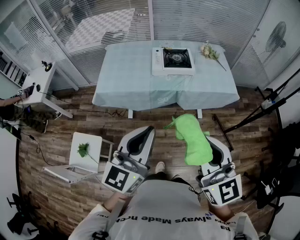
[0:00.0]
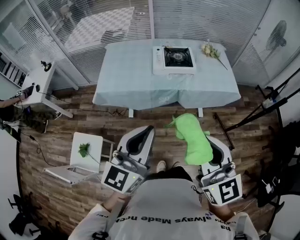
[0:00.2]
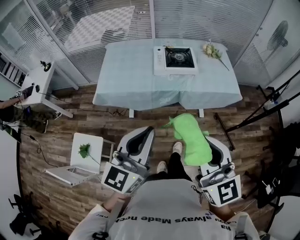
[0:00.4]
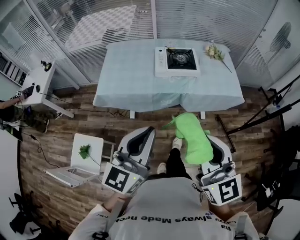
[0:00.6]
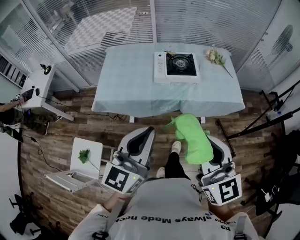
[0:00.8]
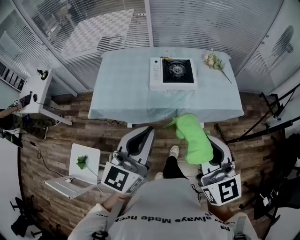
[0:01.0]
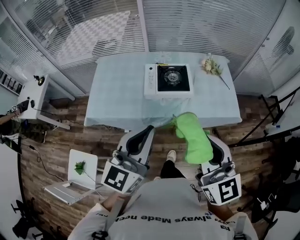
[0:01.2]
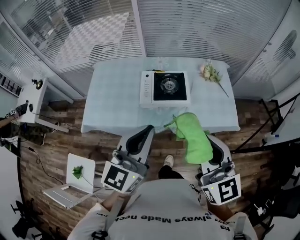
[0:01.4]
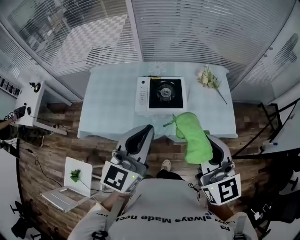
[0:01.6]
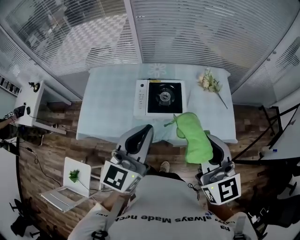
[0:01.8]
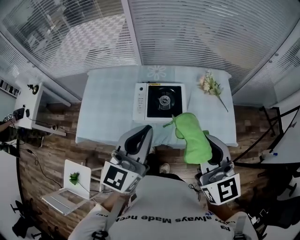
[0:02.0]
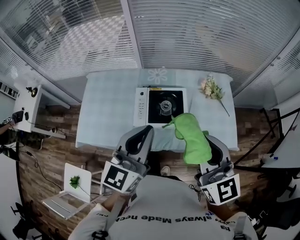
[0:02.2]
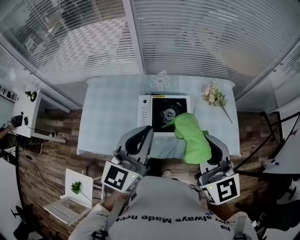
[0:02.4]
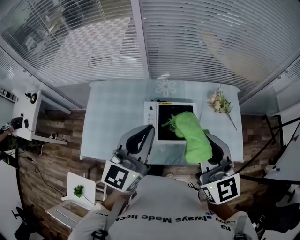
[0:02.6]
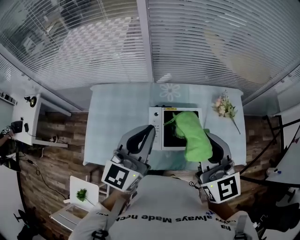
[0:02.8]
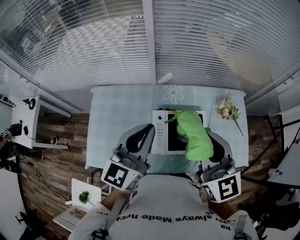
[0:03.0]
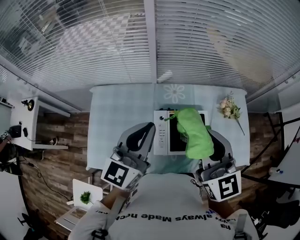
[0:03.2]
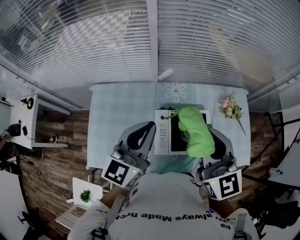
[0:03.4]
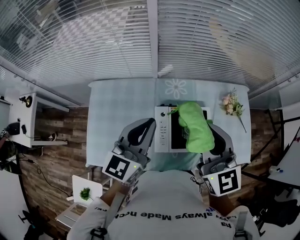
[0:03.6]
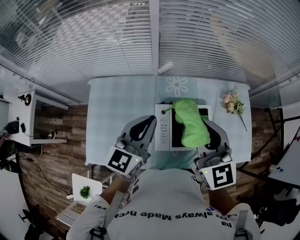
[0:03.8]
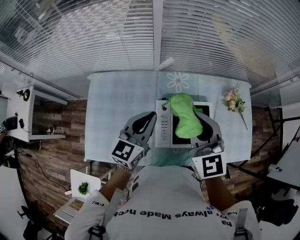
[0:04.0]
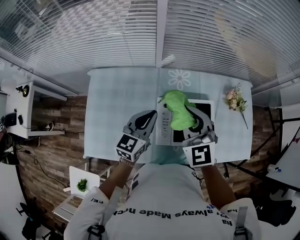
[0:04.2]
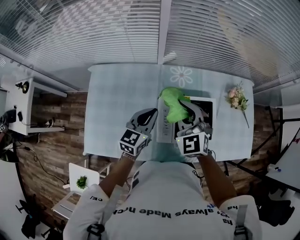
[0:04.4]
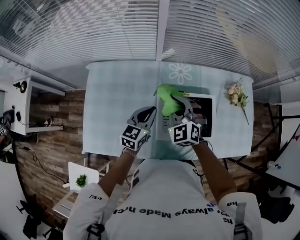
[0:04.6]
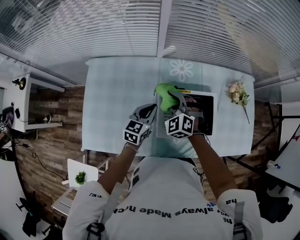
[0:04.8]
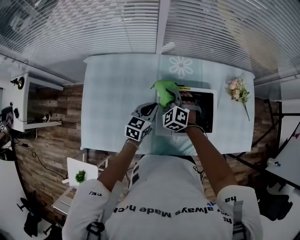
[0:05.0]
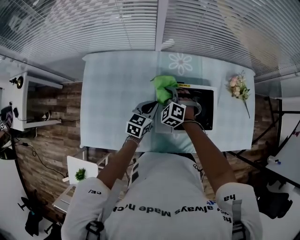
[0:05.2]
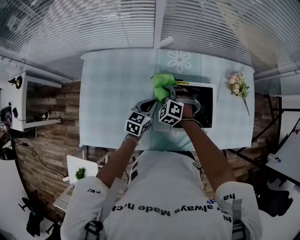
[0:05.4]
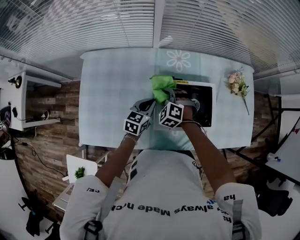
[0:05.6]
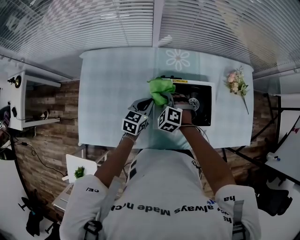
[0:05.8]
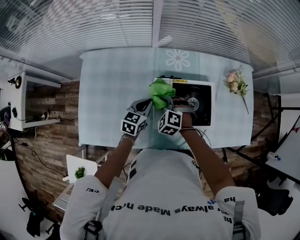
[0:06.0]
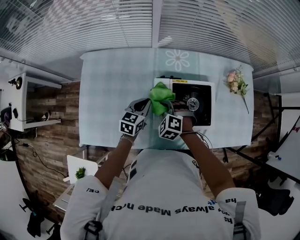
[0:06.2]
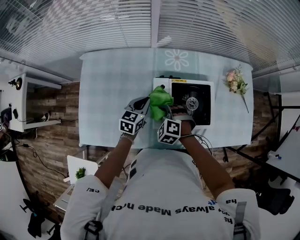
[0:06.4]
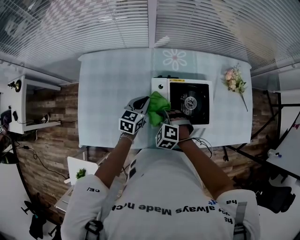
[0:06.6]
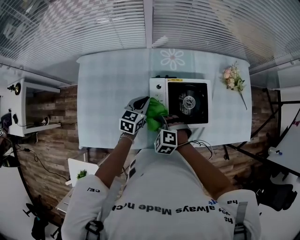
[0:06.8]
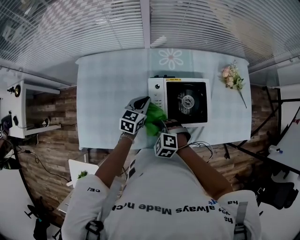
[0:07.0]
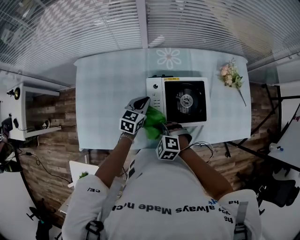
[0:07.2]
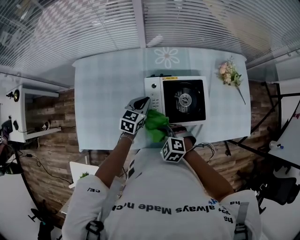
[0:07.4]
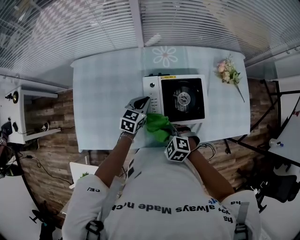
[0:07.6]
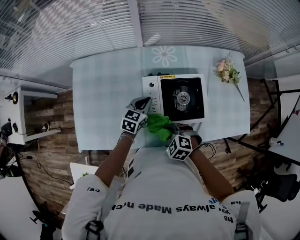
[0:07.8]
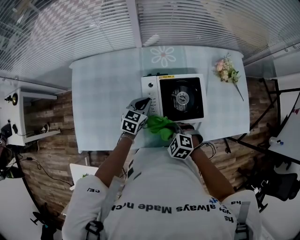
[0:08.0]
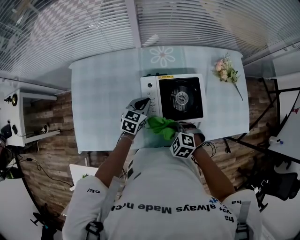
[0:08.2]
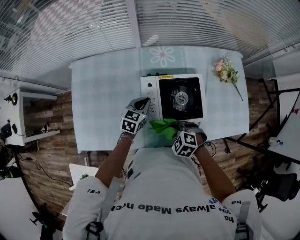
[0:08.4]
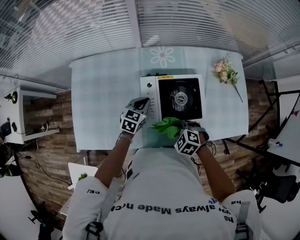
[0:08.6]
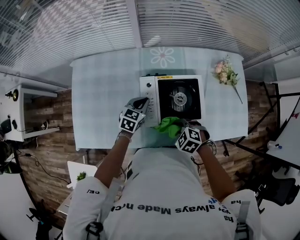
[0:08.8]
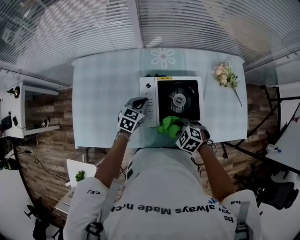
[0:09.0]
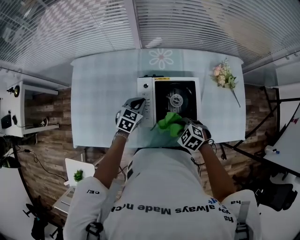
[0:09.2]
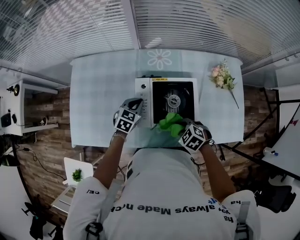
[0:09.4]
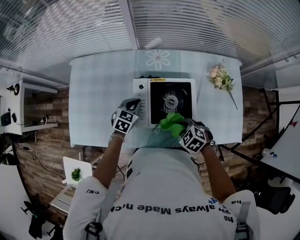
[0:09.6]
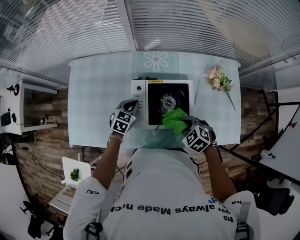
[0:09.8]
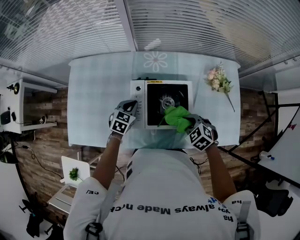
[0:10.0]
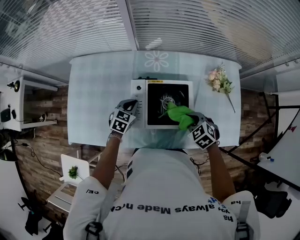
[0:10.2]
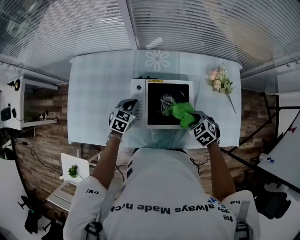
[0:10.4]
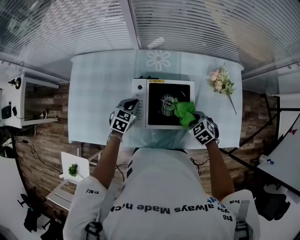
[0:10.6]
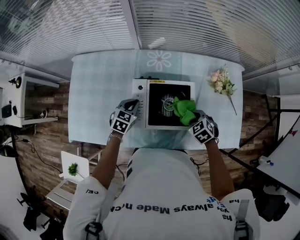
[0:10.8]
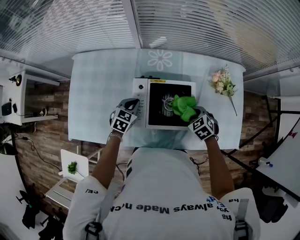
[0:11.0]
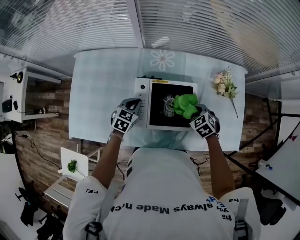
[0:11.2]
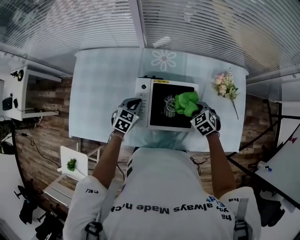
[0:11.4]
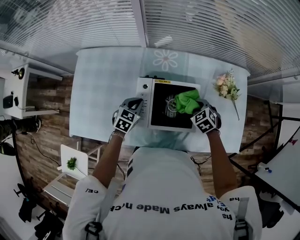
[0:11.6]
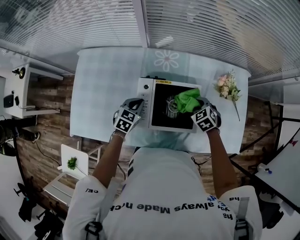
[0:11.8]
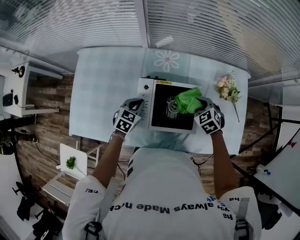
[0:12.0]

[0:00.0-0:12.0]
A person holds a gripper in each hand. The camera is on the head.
0:00.0 to 0:01.6: Both grippers move forward, approximately 35 cm.
0:01.6 to 0:03.0: The two grippers go some 30 cm forward and to the left.
0:03.0 to 0:04.4: The right gripper moves downward, to the left and forward, approximately 25 cm, and changes its angle by approximately 30 degrees; the left gripper moves downward, roughly 25 cm, and rotates approximately 20 degrees.
0:04.4 to 0:06.0: The right gripper is displaced downward by approximately 20 cm, and tilts its fingers approximately 30 degrees downward. The left gripper is displaced downward by approximately 15 cm.
0:06.0 to 0:07.6: The right gripper is displaced backward by some 15 cm, and swivels about 20 degrees.
0:07.6 to 0:09.0: The right gripper goes approximately 10 cm to the right.
0:09.0 to 0:10.4: The right gripper moves to the right, roughly 15 cm.
0:10.4 to 0:12.0: The right gripper travels forward by about 10 cm.

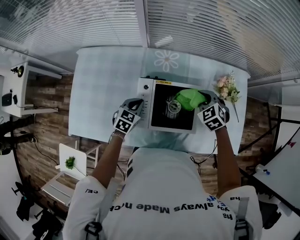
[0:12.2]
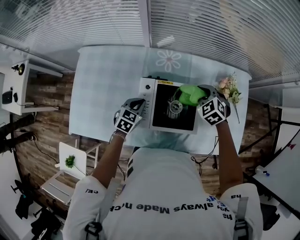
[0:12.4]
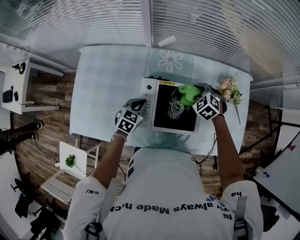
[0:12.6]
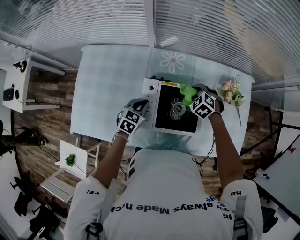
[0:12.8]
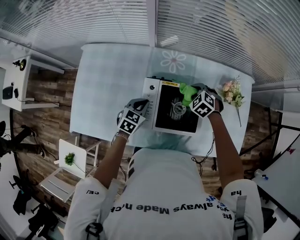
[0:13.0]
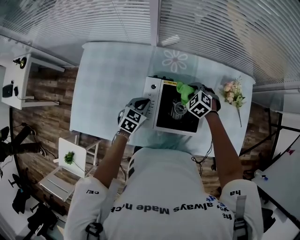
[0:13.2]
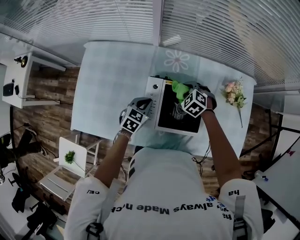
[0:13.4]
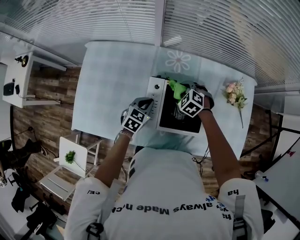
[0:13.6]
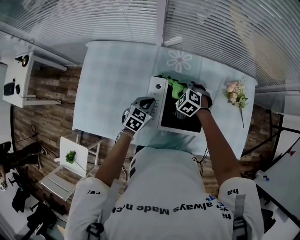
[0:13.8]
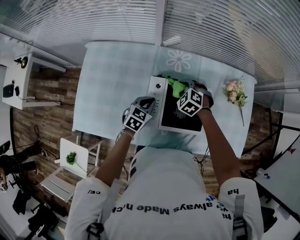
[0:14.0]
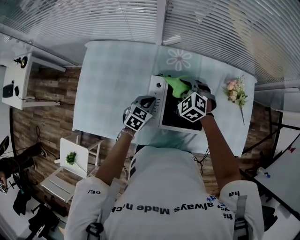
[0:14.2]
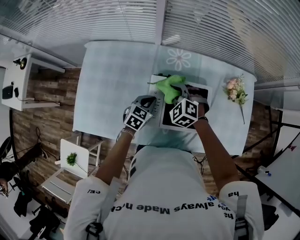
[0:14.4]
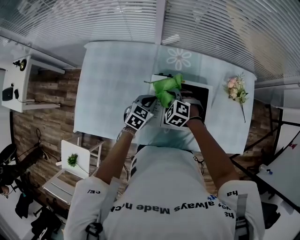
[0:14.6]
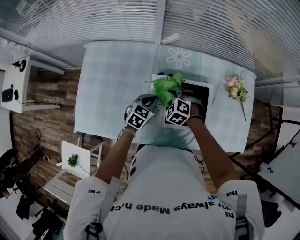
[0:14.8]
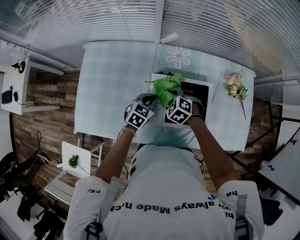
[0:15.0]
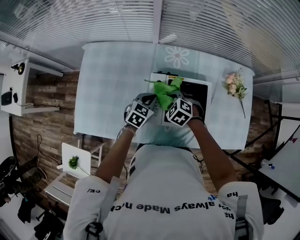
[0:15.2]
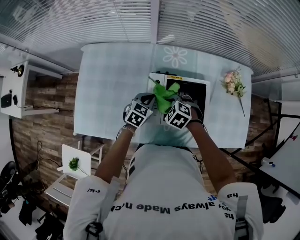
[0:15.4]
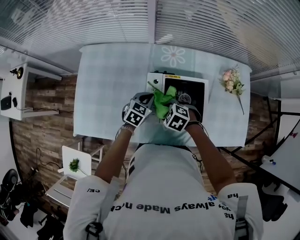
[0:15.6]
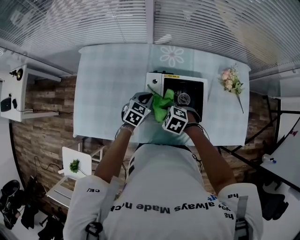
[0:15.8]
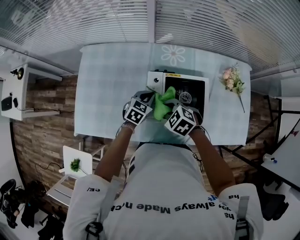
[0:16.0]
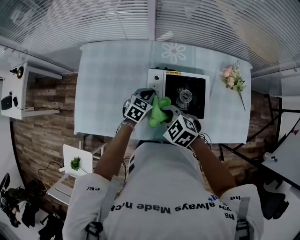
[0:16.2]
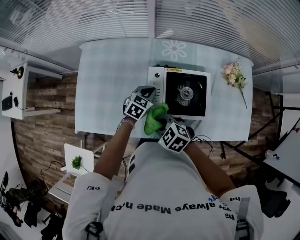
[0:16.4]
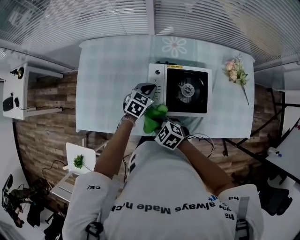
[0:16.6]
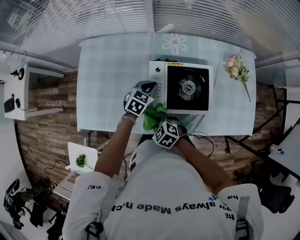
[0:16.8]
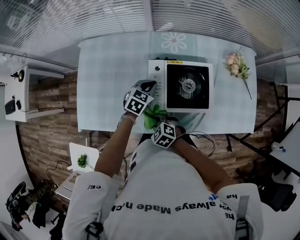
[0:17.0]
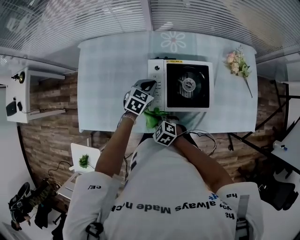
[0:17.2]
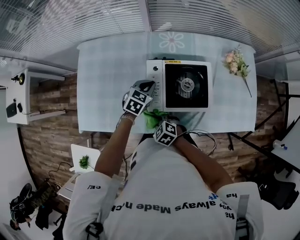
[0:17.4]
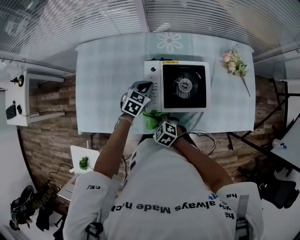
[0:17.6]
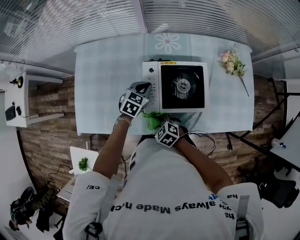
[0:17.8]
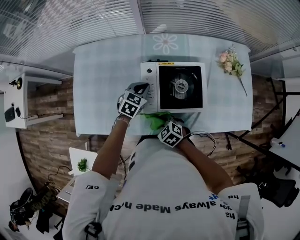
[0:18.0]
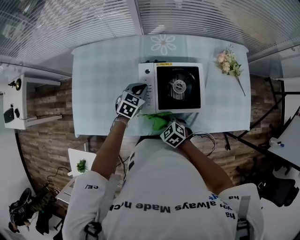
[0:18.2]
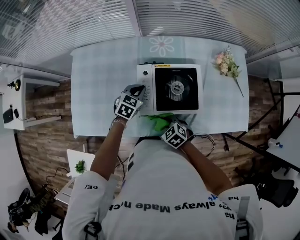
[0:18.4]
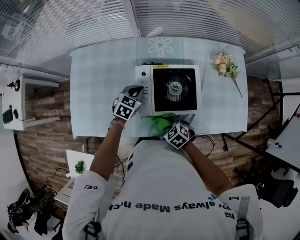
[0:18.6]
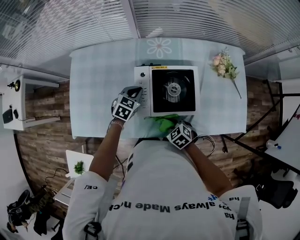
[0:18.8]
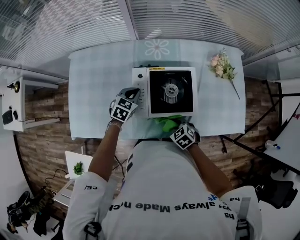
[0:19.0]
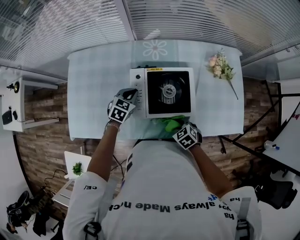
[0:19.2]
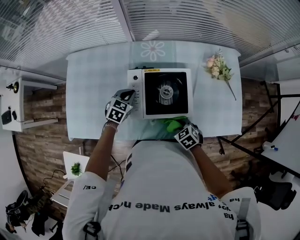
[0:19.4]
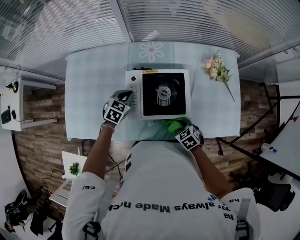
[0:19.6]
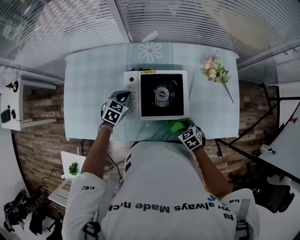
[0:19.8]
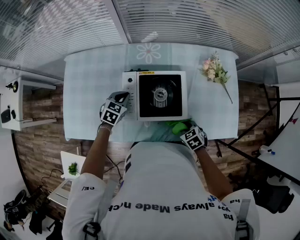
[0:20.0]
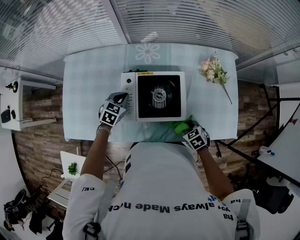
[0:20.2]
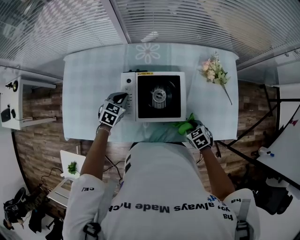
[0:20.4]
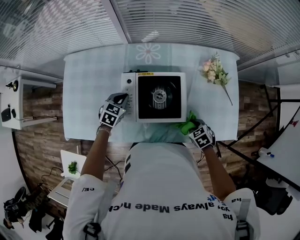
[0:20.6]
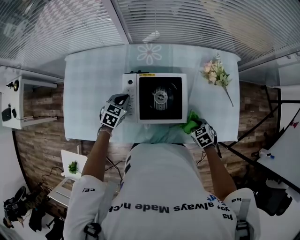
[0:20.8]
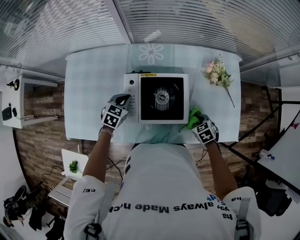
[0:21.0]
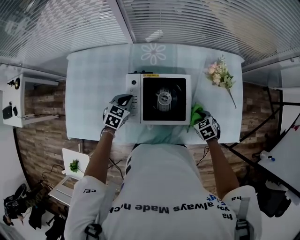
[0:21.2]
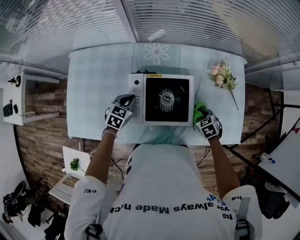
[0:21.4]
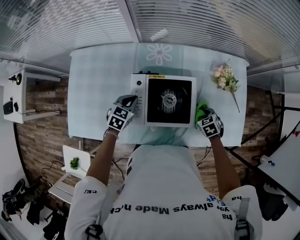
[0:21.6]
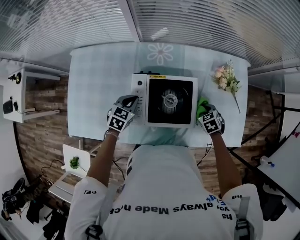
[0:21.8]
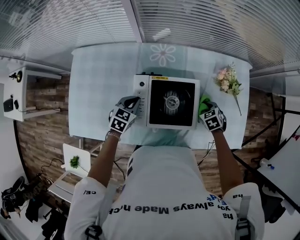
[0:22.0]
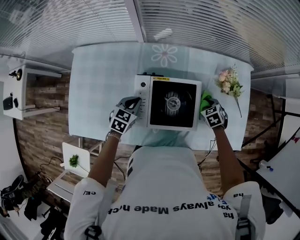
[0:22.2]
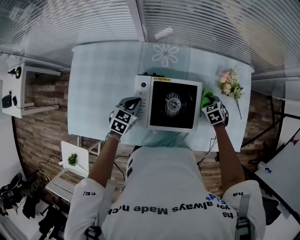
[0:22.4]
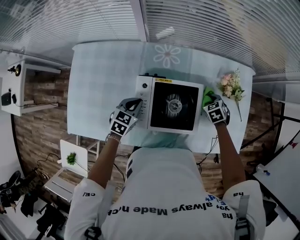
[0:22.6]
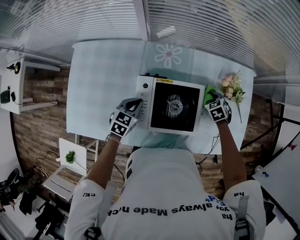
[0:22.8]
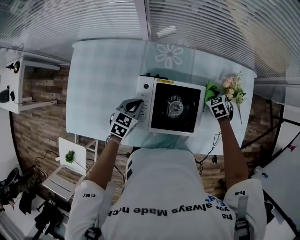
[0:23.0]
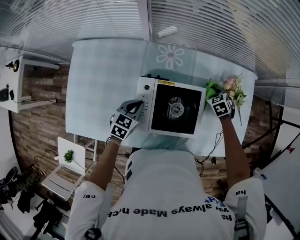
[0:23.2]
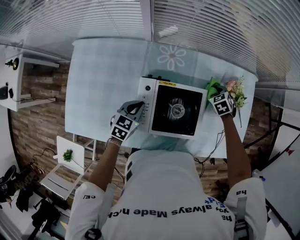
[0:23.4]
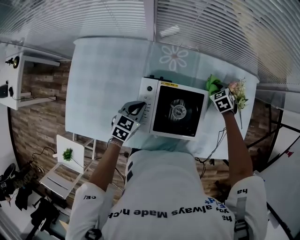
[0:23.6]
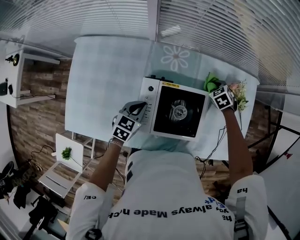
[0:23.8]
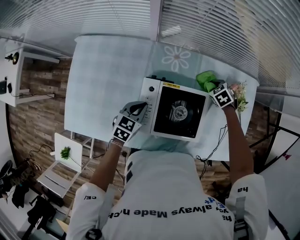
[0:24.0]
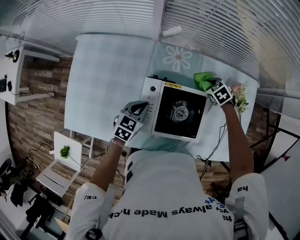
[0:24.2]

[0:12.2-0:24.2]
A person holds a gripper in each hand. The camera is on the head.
0:12.2 to 0:13.8: The right gripper shifts approximately 15 cm to the left and downward.
0:13.8 to 0:15.2: The right gripper moves backward, roughly 10 cm.
0:15.2 to 0:16.6: The right gripper goes approximately 20 cm backward and to the left, and swivels roughly 20 degrees.
0:16.6 to 0:18.2: The right gripper moves to the right and downward, roughly 10 cm.
0:18.2 to 0:19.8: The right gripper is displaced to the right by some 20 cm.
0:19.8 to 0:21.2: The right gripper is displaced to the right and forward by roughly 10 cm.
0:21.2 to 0:22.6: The right gripper travels forward by some 15 cm.
0:22.6 to 0:24.2: The right gripper travels forward and to the left by approximately 10 cm.
